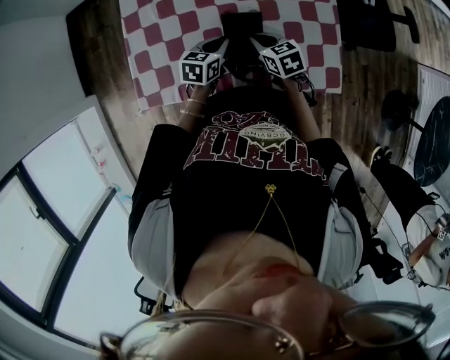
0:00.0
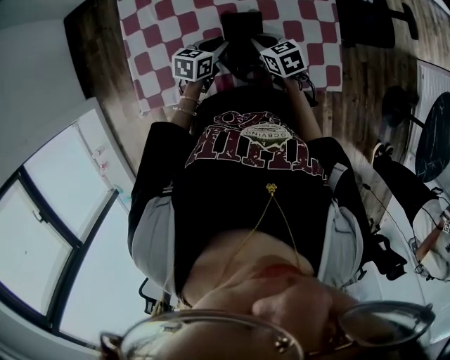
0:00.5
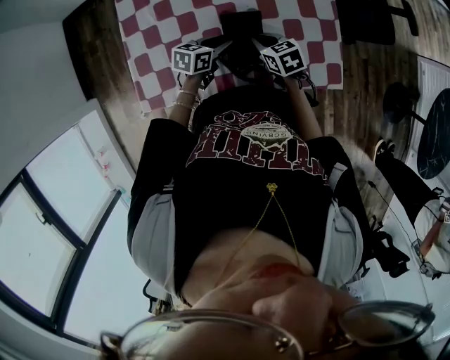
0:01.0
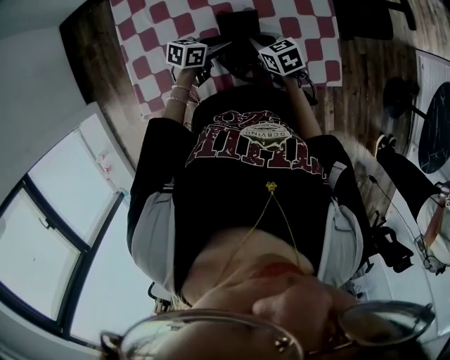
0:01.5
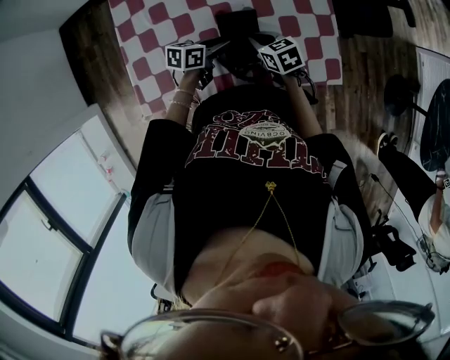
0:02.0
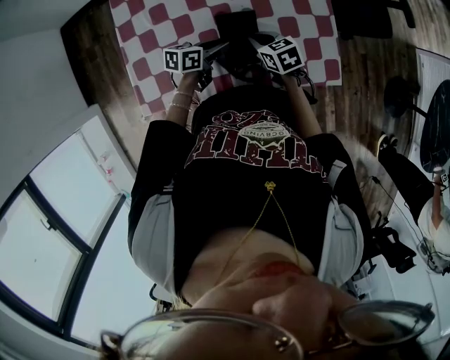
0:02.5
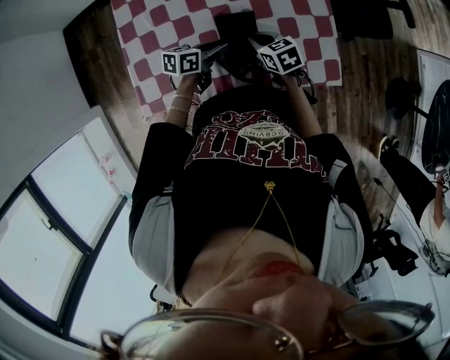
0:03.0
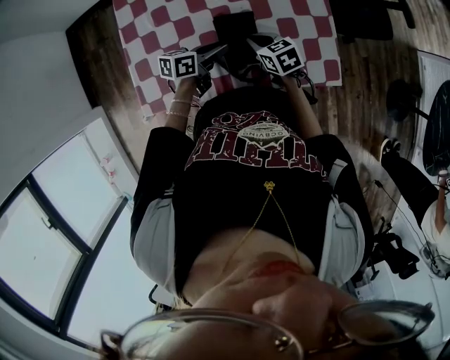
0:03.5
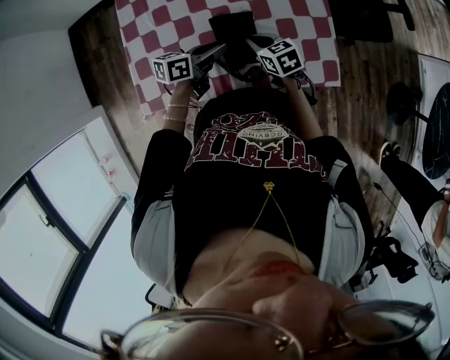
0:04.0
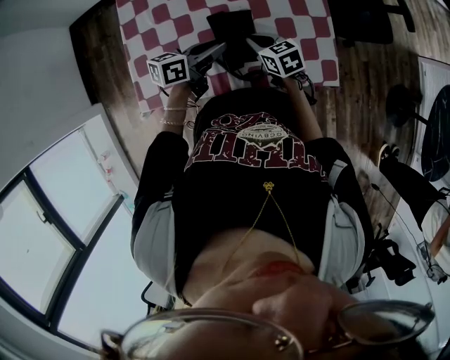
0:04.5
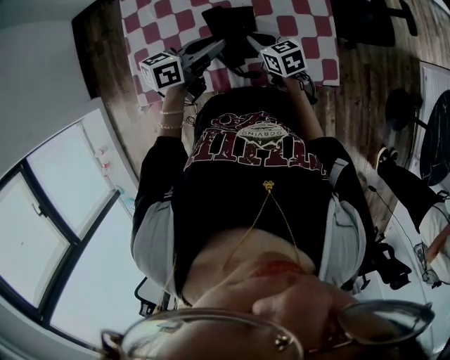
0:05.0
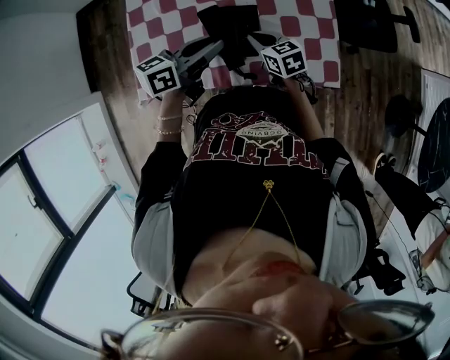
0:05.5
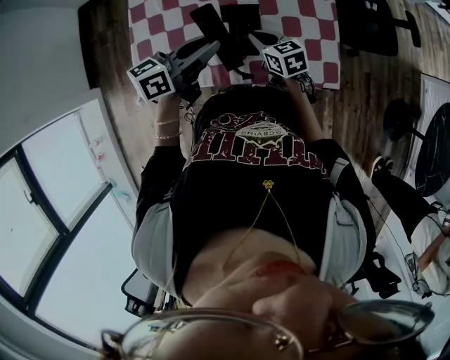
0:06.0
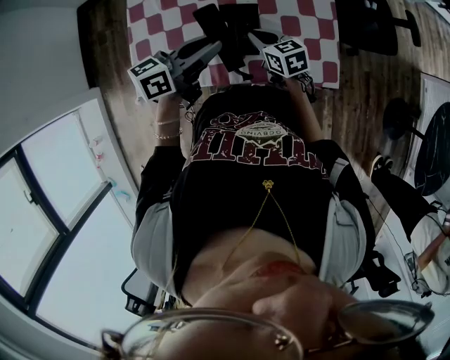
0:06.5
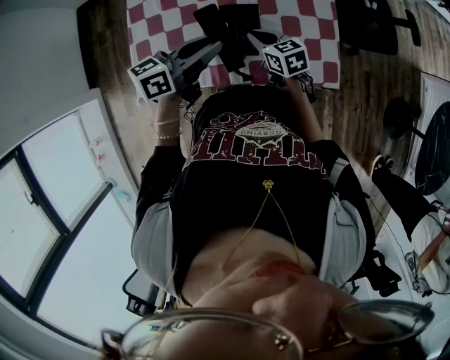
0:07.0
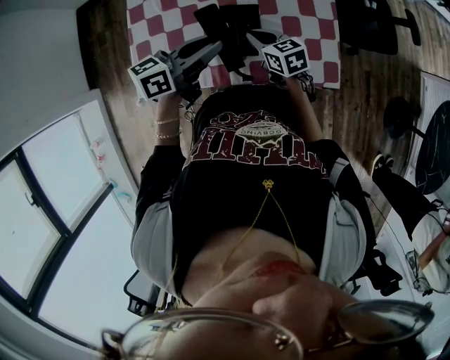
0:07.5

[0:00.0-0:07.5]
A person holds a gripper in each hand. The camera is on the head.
0:00.0 to 0:02.0: The left gripper swivels some 30 degrees.
0:02.0 to 0:04.0: The left gripper travels upward by roughly 10 cm.
0:04.0 to 0:05.5: The left gripper travels upward by approximately 10 cm.
0:05.5 to 0:07.5: The grippers stay close to where they were, moving slightly.

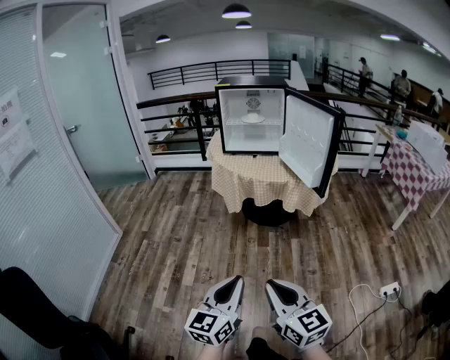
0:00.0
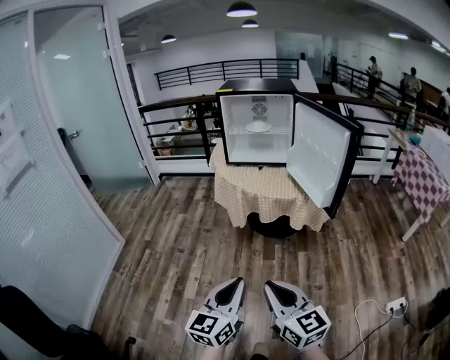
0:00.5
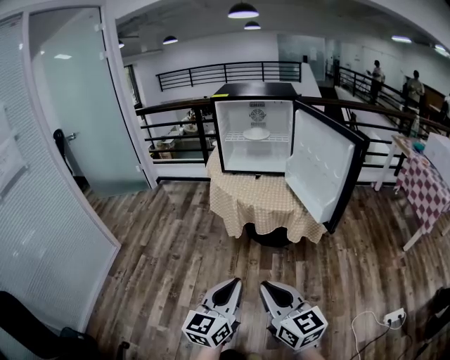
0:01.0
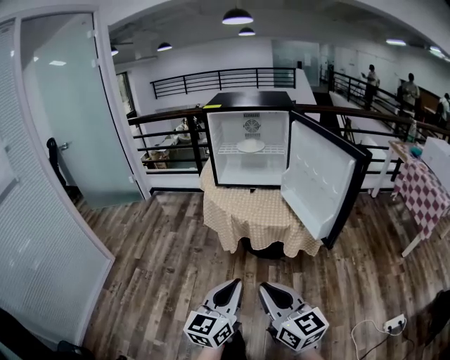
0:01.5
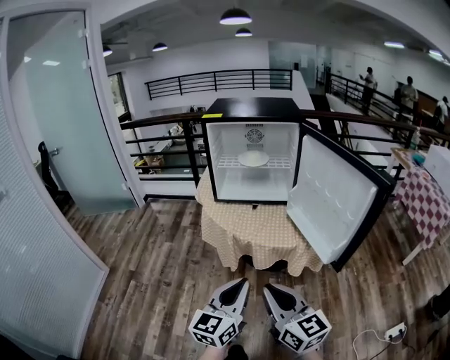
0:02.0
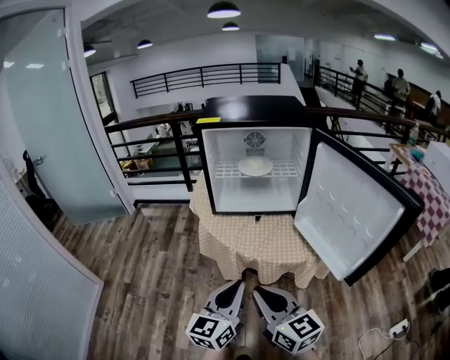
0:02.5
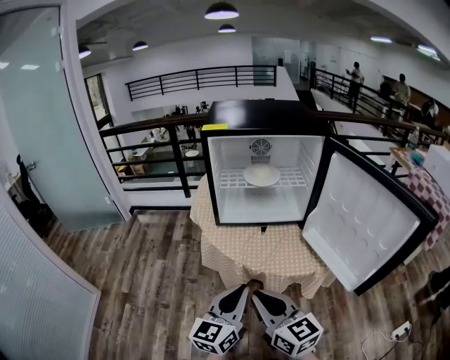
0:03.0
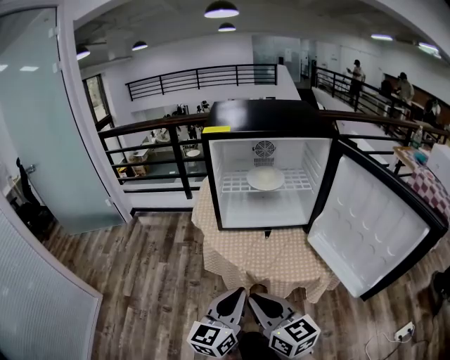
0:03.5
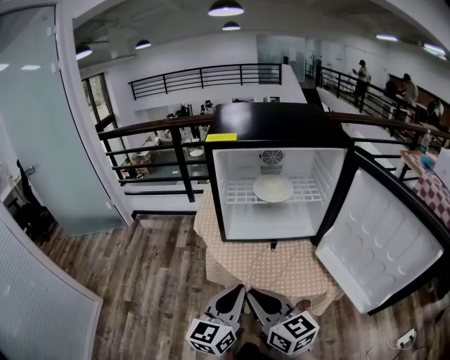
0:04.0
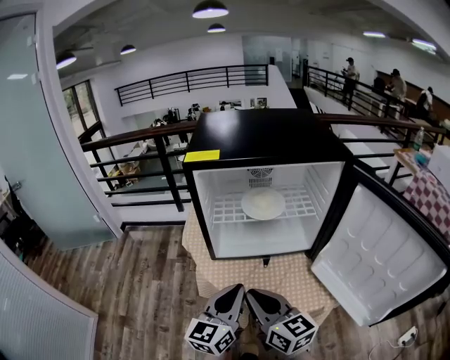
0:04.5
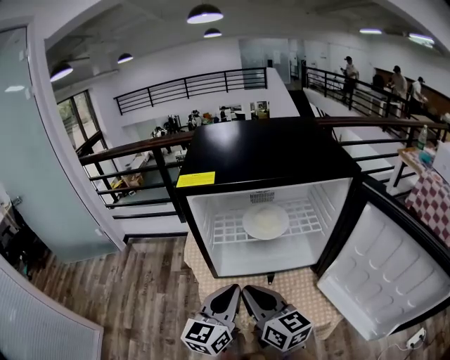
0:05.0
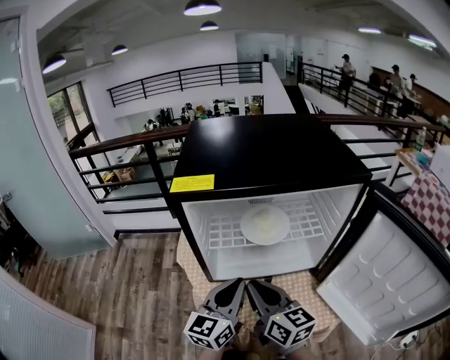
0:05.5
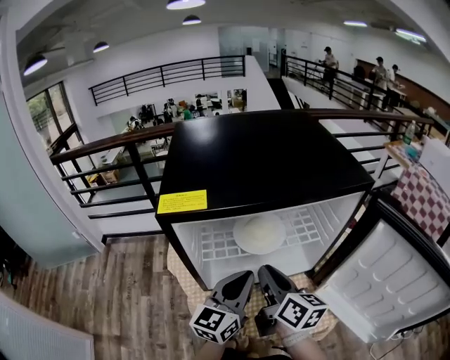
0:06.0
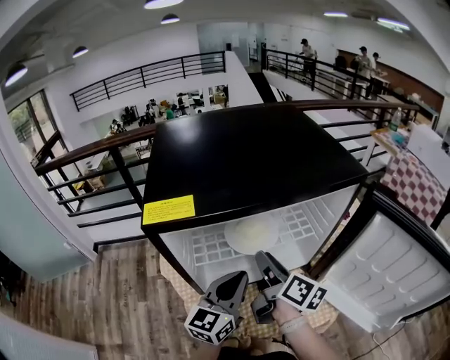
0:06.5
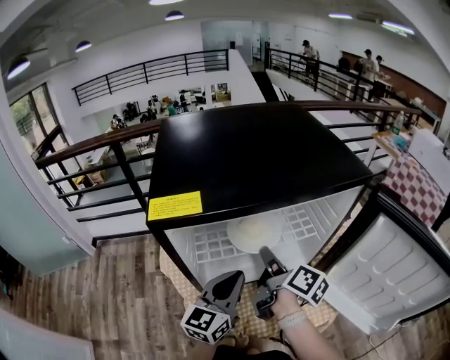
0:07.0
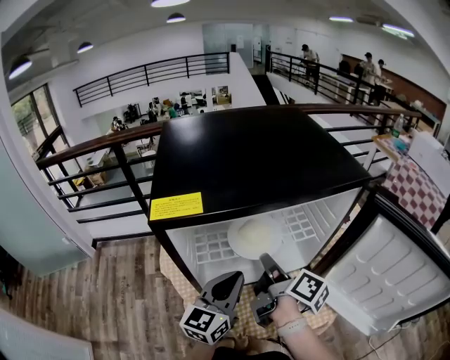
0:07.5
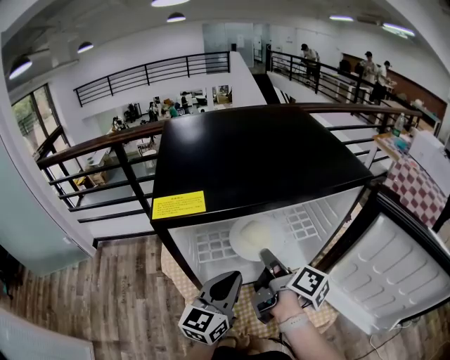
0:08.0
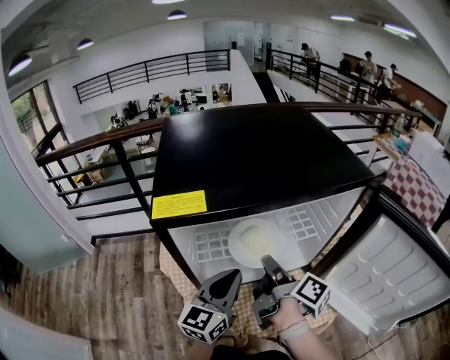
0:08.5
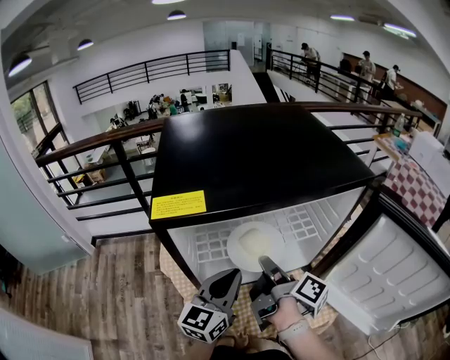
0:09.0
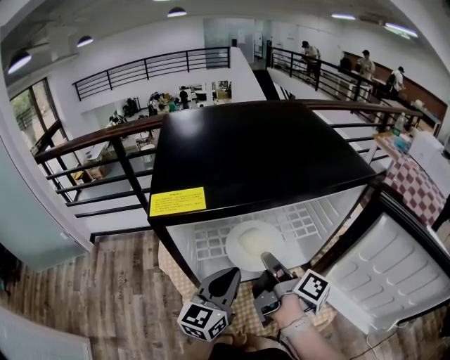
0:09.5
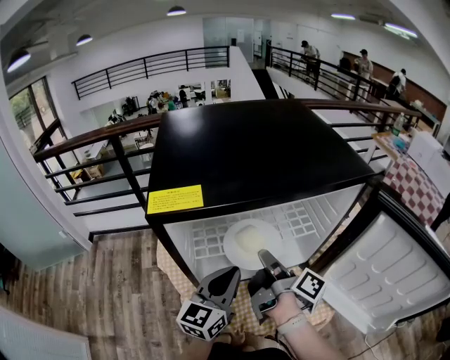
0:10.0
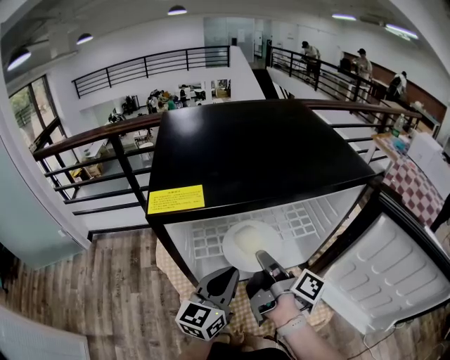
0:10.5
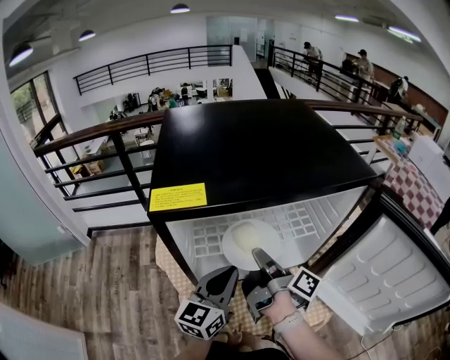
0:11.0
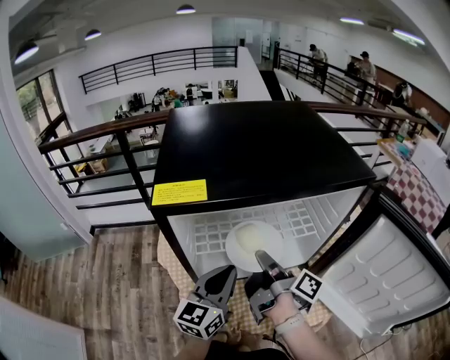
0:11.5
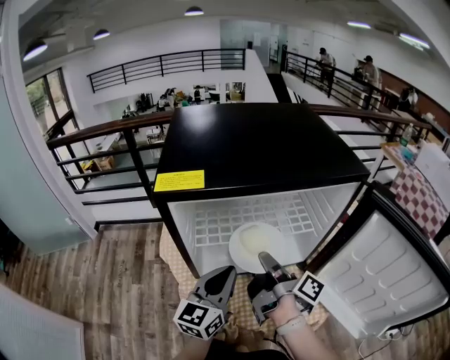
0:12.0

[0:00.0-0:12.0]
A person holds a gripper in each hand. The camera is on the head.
0:00.0 to 0:02.0: The grippers both shift forward by roughly 35 cm.
0:02.0 to 0:04.0: The right gripper shifts roughly 30 cm forward and to the left, while the left gripper travels forward by some 25 cm.
0:04.0 to 0:06.0: The two grippers go some 25 cm forward. The right gripper changes its angle by about 40 degrees.
0:06.0 to 0:08.0: The right gripper rotates some 40 degrees.
0:08.0 to 0:12.0: There are only small adjustments of the grippers.

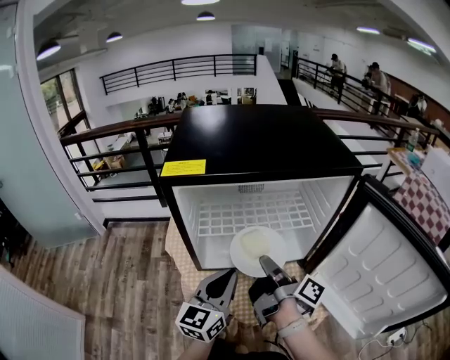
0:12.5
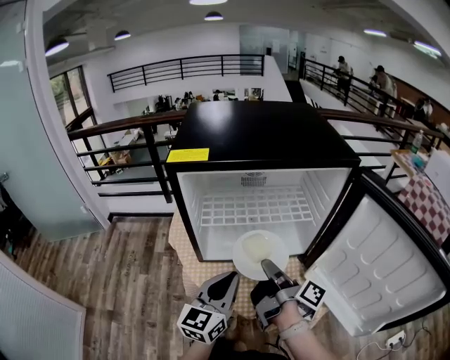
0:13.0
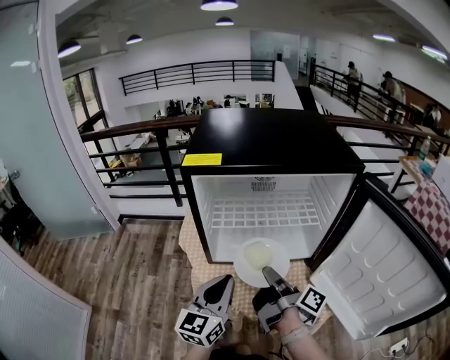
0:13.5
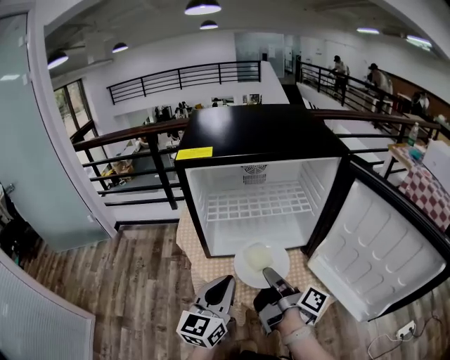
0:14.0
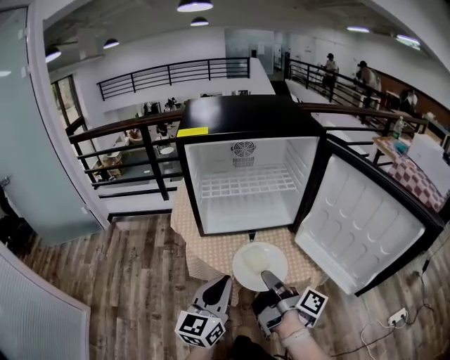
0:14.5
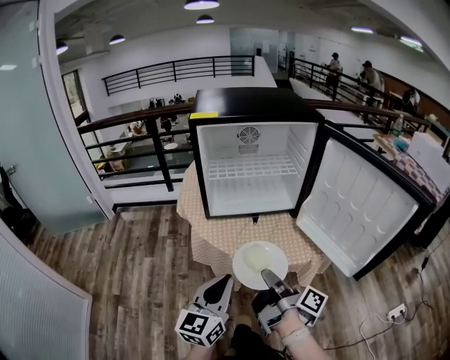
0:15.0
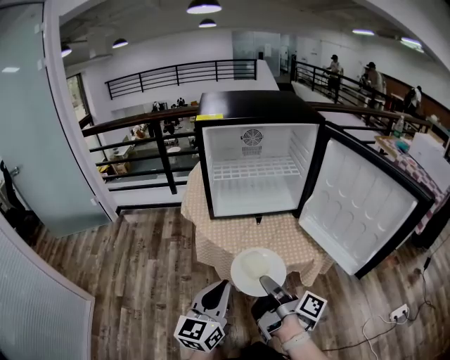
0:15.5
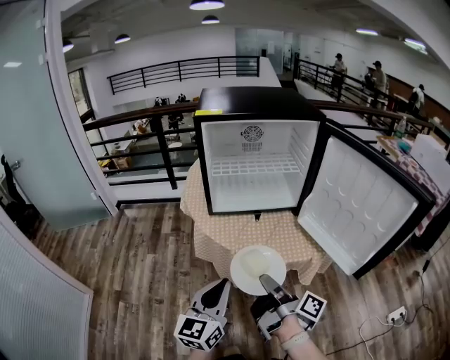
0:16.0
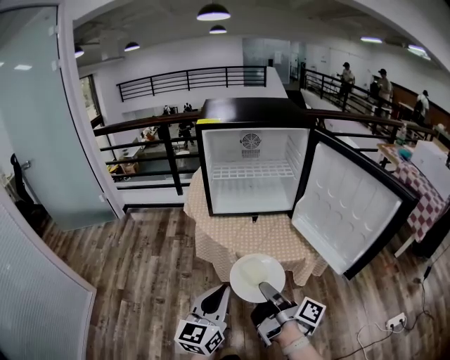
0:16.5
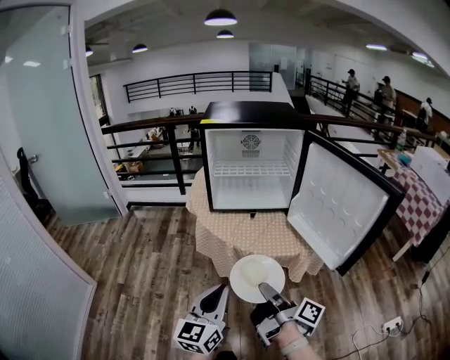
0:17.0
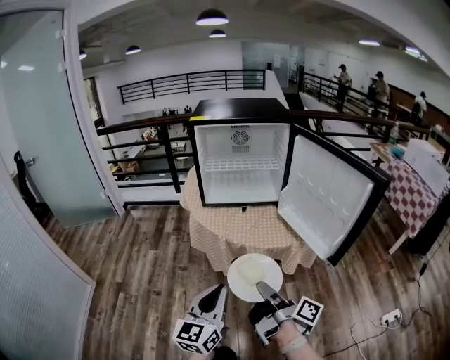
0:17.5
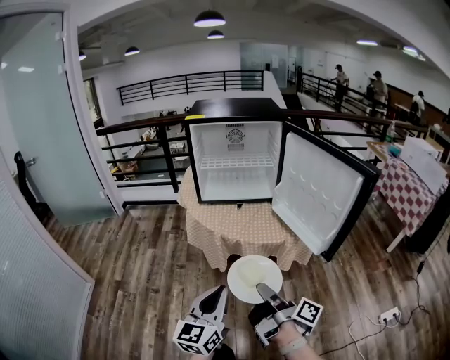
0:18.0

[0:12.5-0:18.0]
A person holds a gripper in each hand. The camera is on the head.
0:12.5 to 0:14.5: Both grippers move backward, approximately 20 cm.
0:14.5 to 0:16.0: The grippers both shift backward by approximately 10 cm.
0:16.0 to 0:18.0: The two grippers go roughly 20 cm backward and to the right.

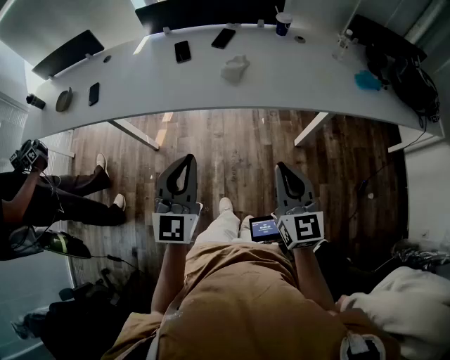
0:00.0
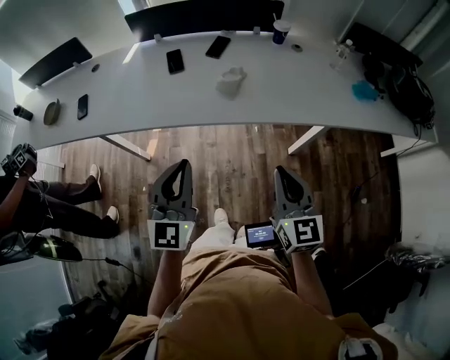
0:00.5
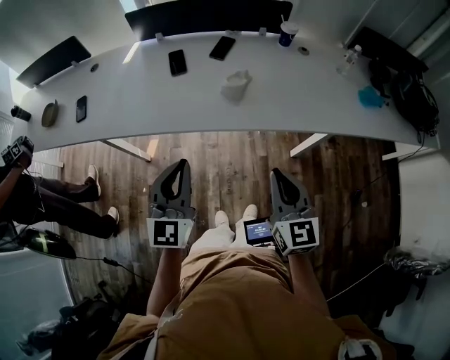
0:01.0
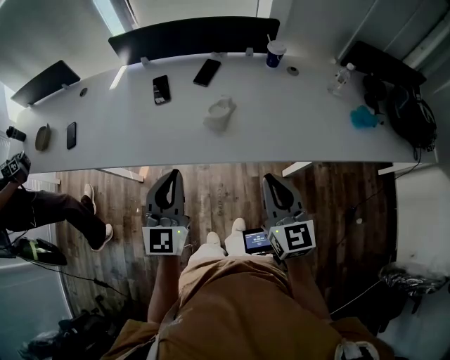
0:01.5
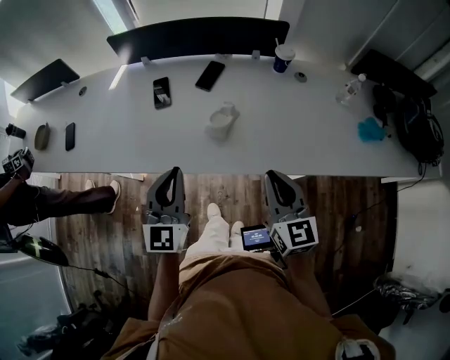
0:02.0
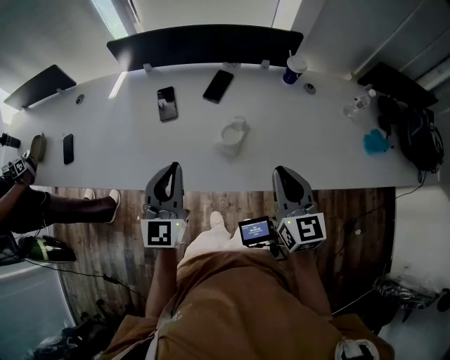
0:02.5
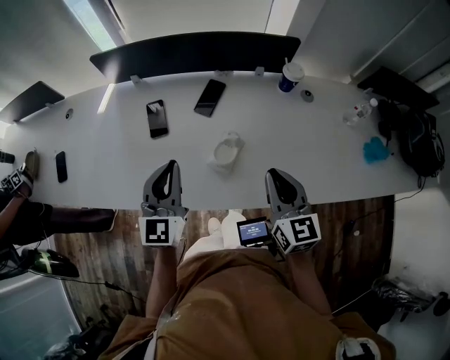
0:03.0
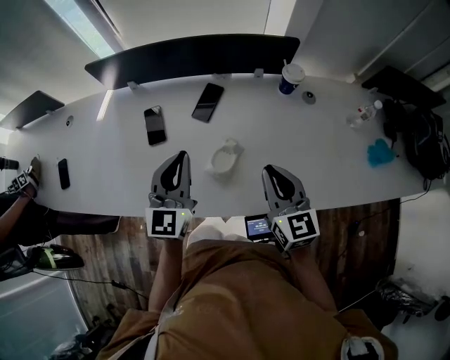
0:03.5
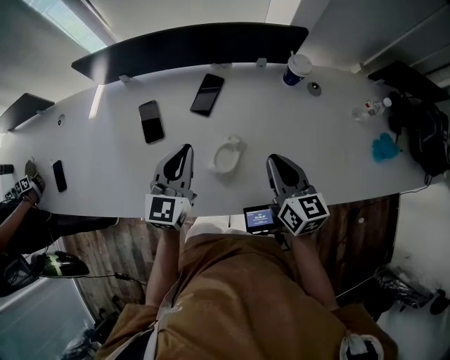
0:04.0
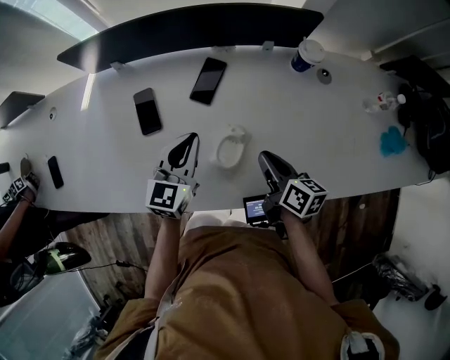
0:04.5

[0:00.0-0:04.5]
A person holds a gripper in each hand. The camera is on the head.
0:00.0 to 0:02.0: Both grippers move forward, about 25 cm.
0:02.0 to 0:04.5: Both grippers move forward and downward, some 30 cm. The left gripper rotates some 30 degrees; the right gripper rotates around the line of its fingers by about 40 degrees, clockwise from behind.
